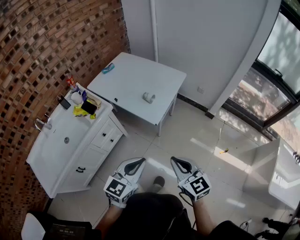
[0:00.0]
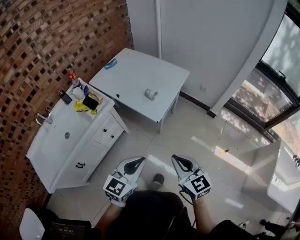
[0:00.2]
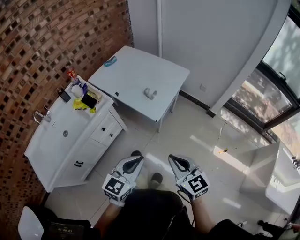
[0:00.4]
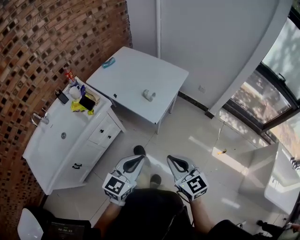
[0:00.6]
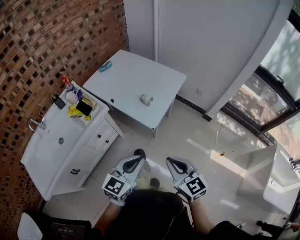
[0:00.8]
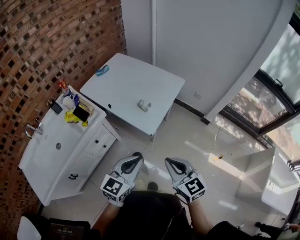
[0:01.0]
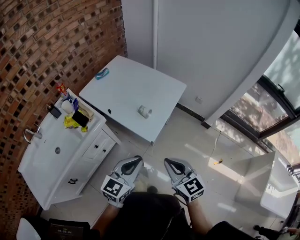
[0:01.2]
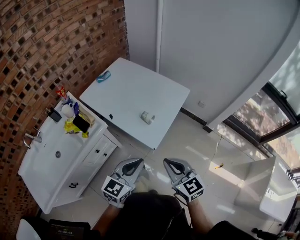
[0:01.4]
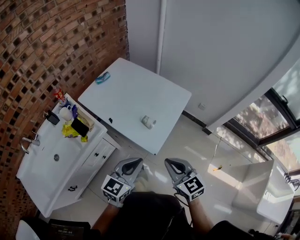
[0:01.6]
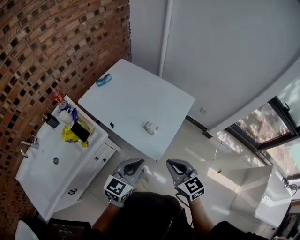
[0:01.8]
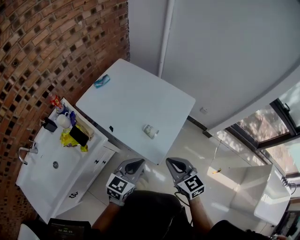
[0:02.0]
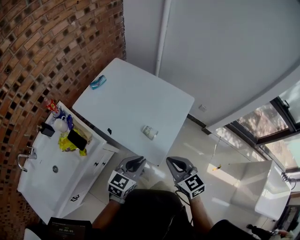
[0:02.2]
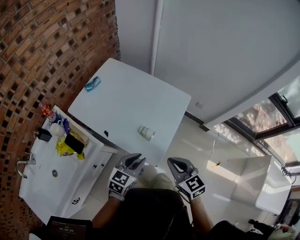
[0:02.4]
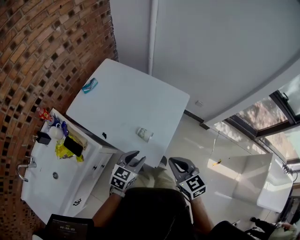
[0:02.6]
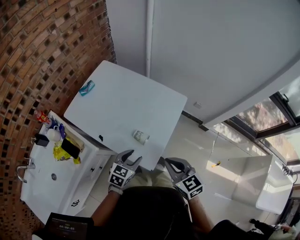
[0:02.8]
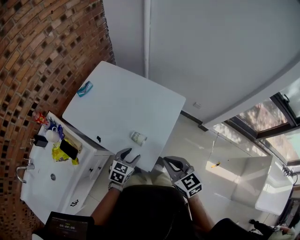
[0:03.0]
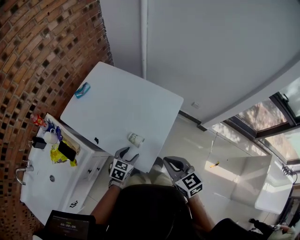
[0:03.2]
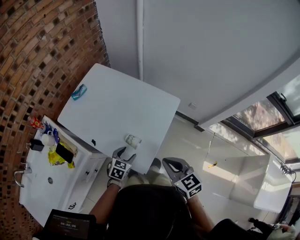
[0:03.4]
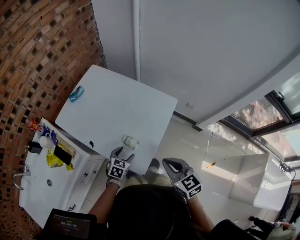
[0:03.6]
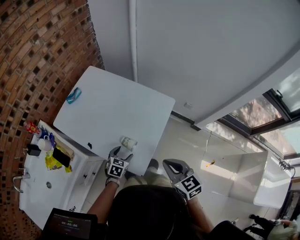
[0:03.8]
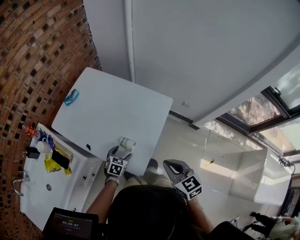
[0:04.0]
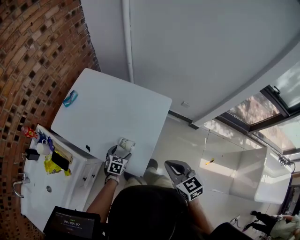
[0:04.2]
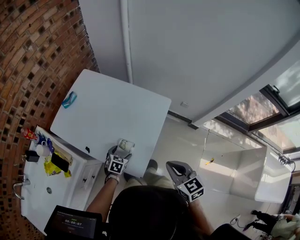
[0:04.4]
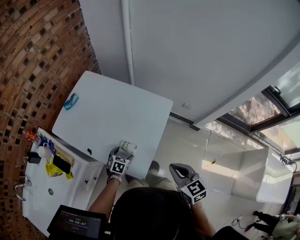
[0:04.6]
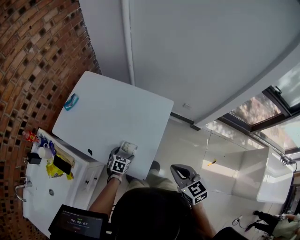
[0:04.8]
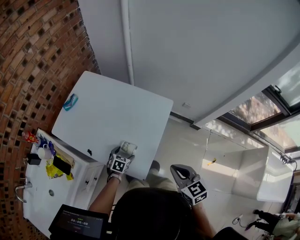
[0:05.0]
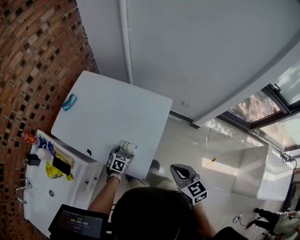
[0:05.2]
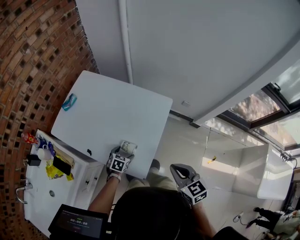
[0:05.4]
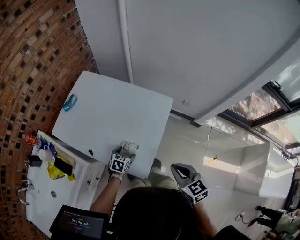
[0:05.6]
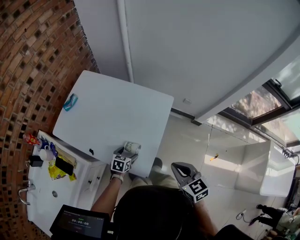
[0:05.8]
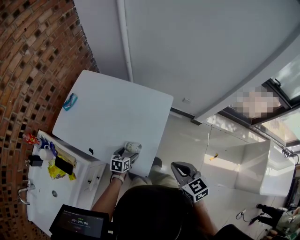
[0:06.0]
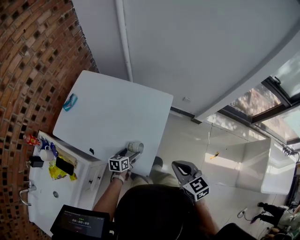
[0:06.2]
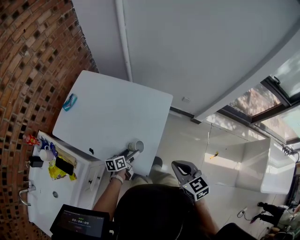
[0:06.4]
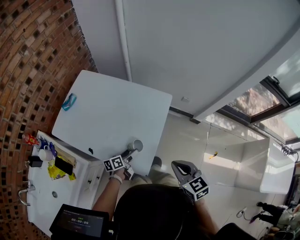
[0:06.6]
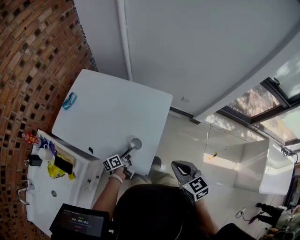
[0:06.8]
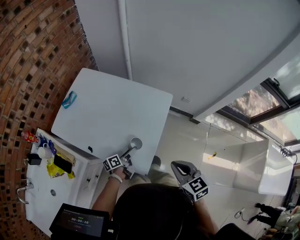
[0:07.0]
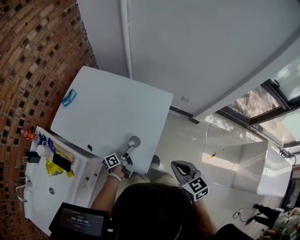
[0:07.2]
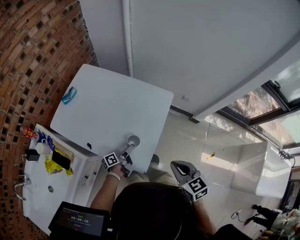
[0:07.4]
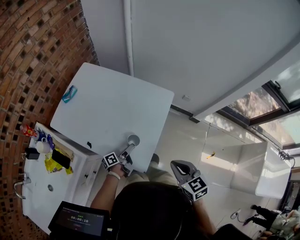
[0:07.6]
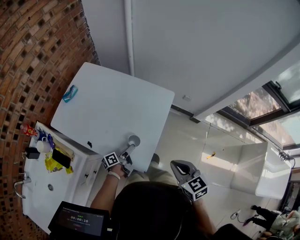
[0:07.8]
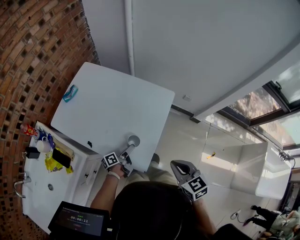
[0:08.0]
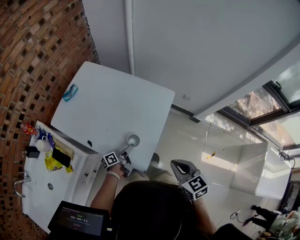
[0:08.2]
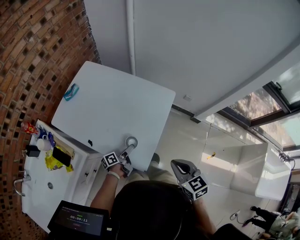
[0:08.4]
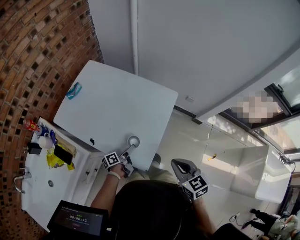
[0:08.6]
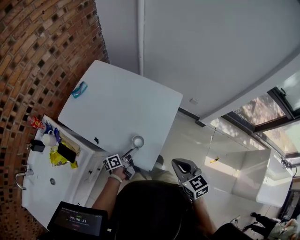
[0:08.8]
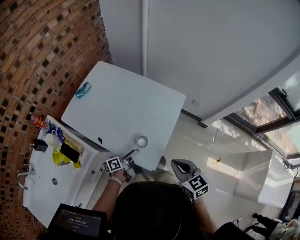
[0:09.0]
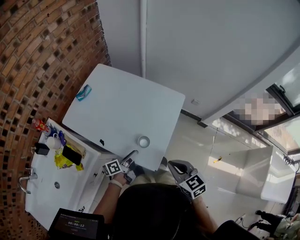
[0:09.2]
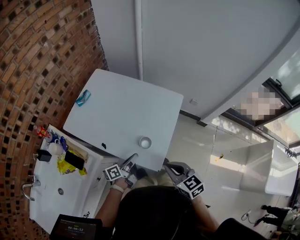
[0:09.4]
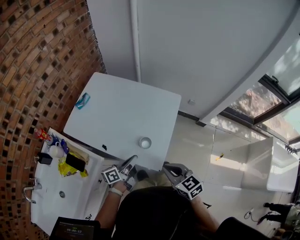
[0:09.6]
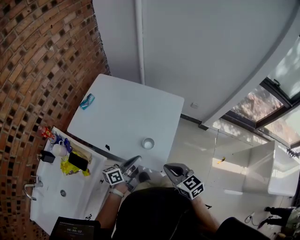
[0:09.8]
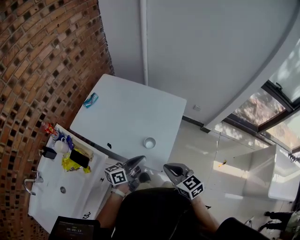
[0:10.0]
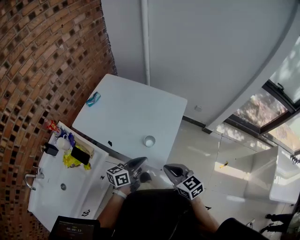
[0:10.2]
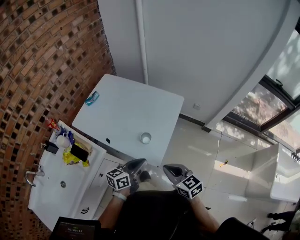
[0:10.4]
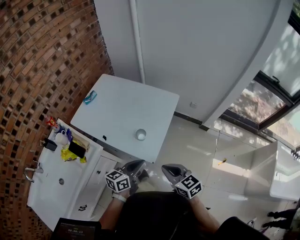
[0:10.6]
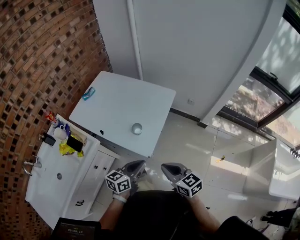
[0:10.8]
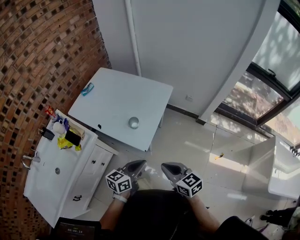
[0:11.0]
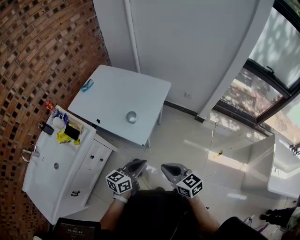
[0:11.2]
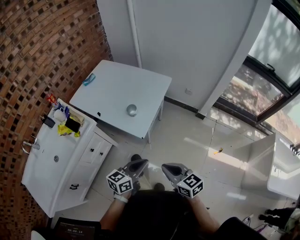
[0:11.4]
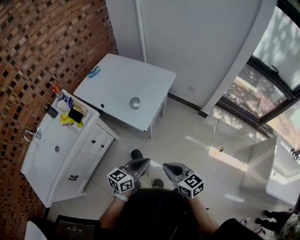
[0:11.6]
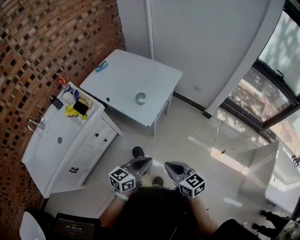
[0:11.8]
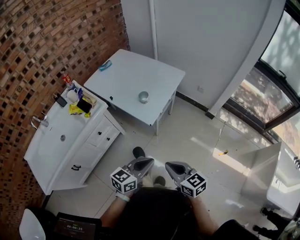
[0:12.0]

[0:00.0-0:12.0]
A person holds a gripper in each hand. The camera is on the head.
0:00.0 to 0:01.6: Both grippers travel together forward, about 25 cm.
0:01.6 to 0:03.0: The left gripper is displaced forward and downward by roughly 25 cm, turns by some 30 degrees, and opens up. Meanwhile the right gripper shifts roughly 15 cm forward.
0:03.0 to 0:04.4: The right gripper heads to the right, covering roughly 5 cm, while the left gripper travels downward and forward by approximately 15 cm, and opens.
0:04.4 to 0:06.0: There are only small adjustments of the grippers.
0:06.0 to 0:07.6: The left gripper rolls counterclockwise, seen from behind, by roughly 60 degrees.
0:07.6 to 0:09.0: The left gripper goes roughly 5 cm upward, while the right gripper shifts by roughly 5 cm.
0:09.0 to 0:10.4: The right gripper moves backward, approximately 10 cm. Meanwhile the left gripper shifts approximately 20 cm upward and backward, twists about 40 degrees clockwise, seen from behind, and closes up.
0:10.4 to 0:12.0: The right gripper goes approximately 25 cm backward, while the left gripper is displaced backward and to the right by some 30 cm.

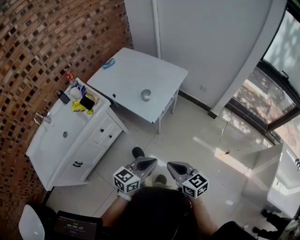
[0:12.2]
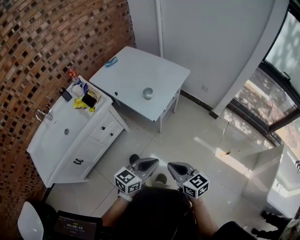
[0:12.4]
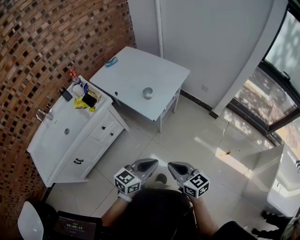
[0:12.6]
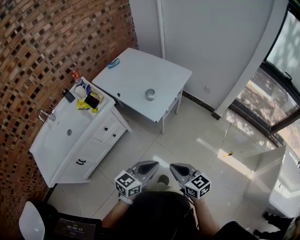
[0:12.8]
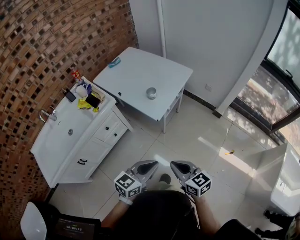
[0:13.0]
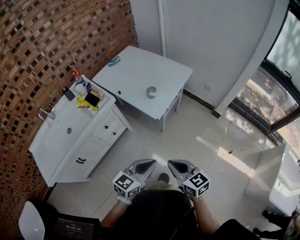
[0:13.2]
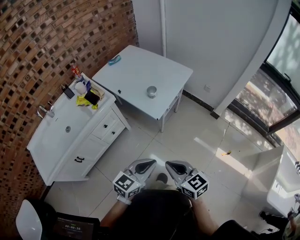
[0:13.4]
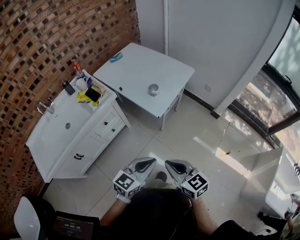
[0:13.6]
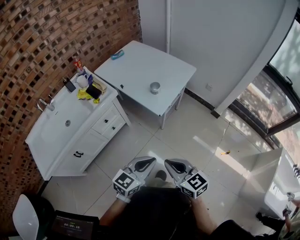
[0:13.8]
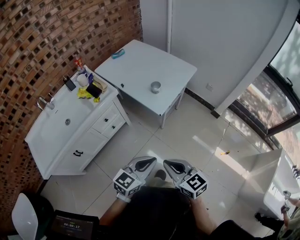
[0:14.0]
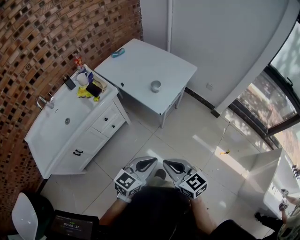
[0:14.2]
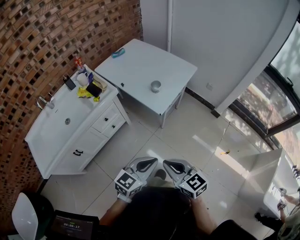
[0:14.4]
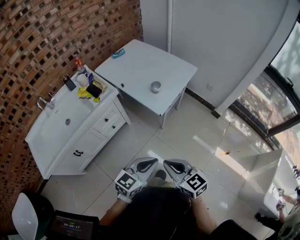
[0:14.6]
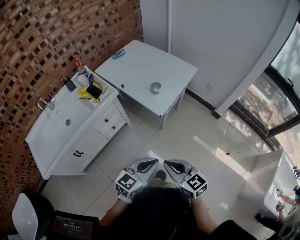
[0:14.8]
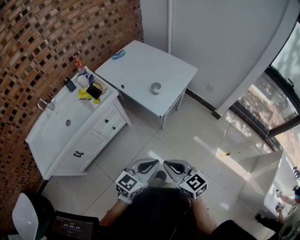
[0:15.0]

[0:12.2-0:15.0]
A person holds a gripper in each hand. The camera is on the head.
0:12.2 to 0:13.6: The left gripper changes place by some 5 cm. Meanwhile the right gripper ends up about 5 cm from where it was.
0:13.6 to 0:15.0: There are only small adjustments of the grippers.

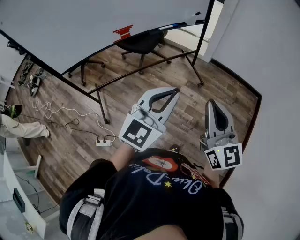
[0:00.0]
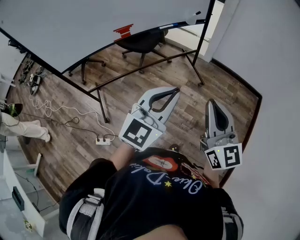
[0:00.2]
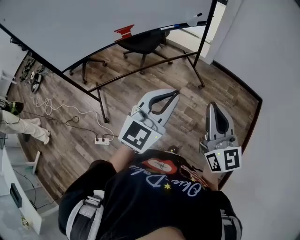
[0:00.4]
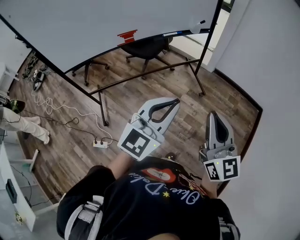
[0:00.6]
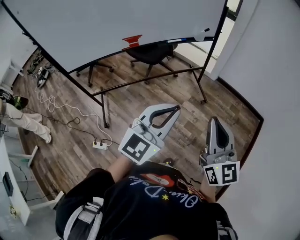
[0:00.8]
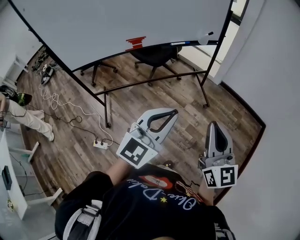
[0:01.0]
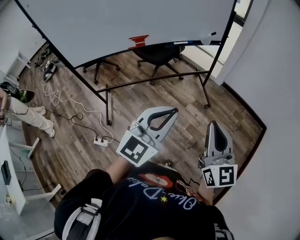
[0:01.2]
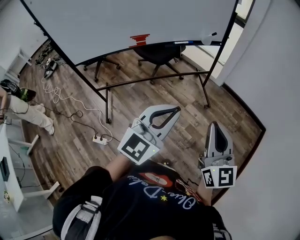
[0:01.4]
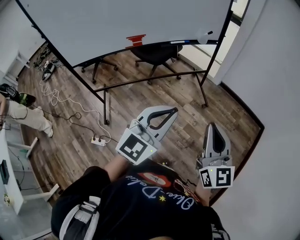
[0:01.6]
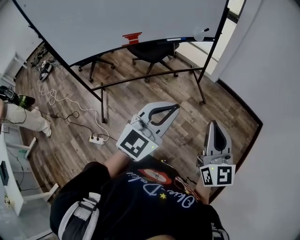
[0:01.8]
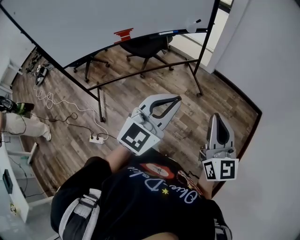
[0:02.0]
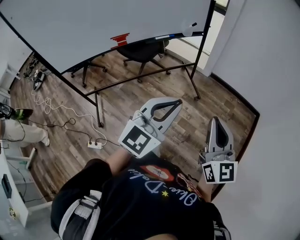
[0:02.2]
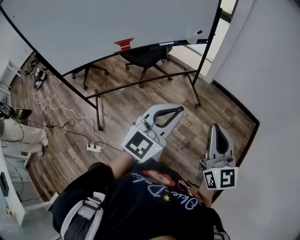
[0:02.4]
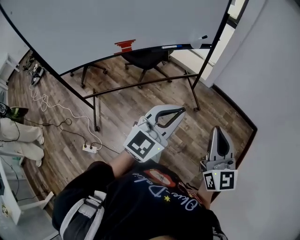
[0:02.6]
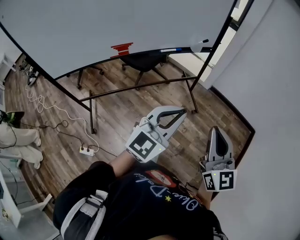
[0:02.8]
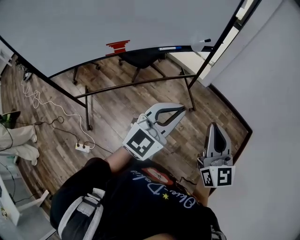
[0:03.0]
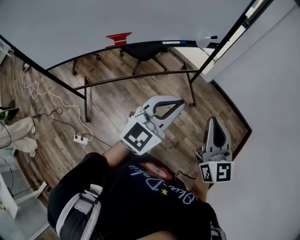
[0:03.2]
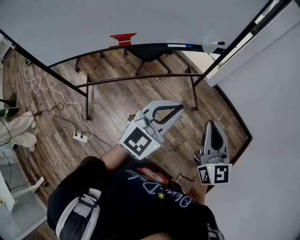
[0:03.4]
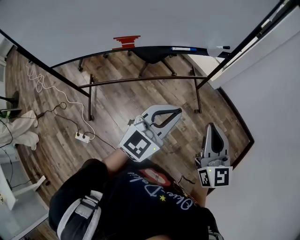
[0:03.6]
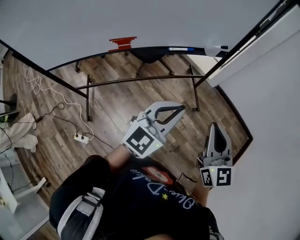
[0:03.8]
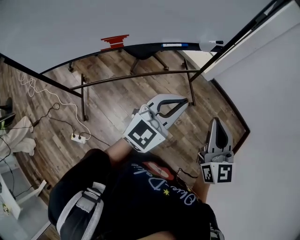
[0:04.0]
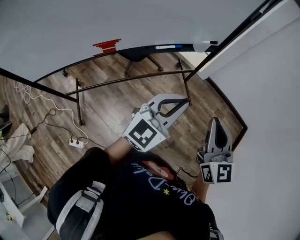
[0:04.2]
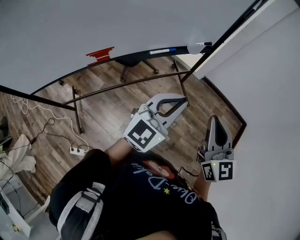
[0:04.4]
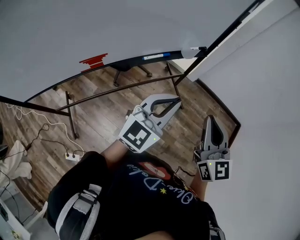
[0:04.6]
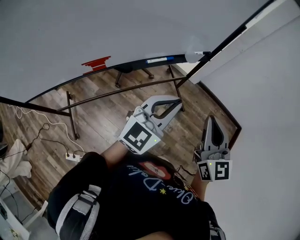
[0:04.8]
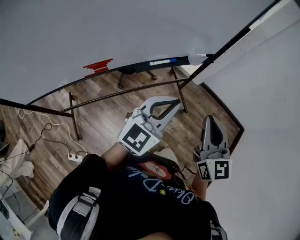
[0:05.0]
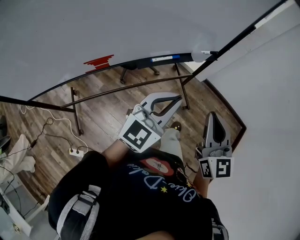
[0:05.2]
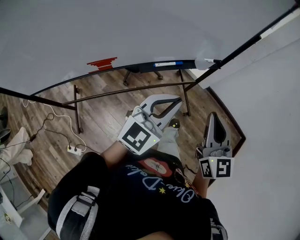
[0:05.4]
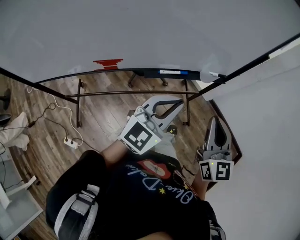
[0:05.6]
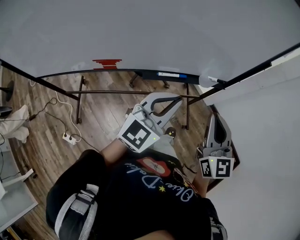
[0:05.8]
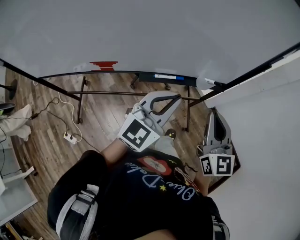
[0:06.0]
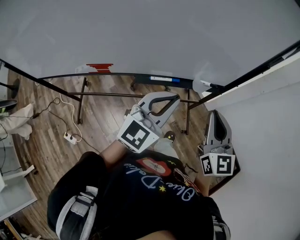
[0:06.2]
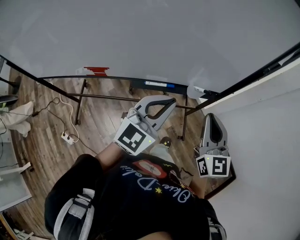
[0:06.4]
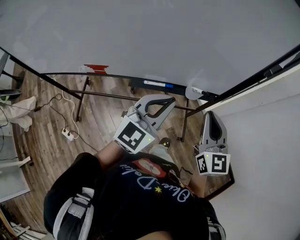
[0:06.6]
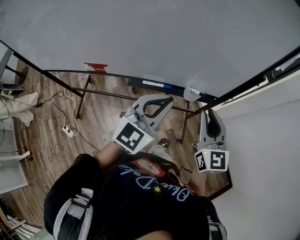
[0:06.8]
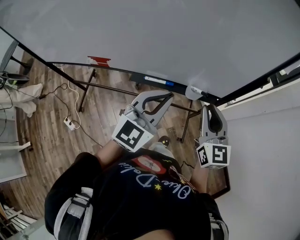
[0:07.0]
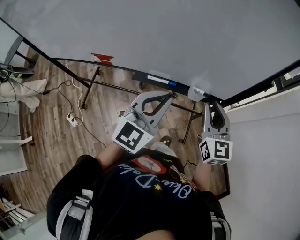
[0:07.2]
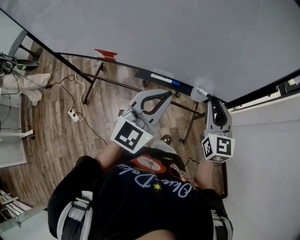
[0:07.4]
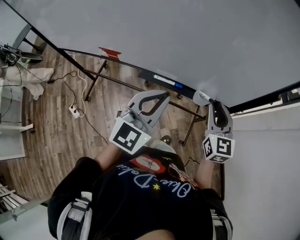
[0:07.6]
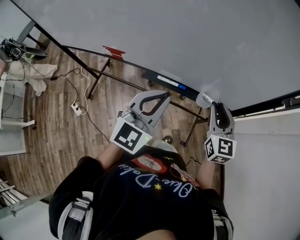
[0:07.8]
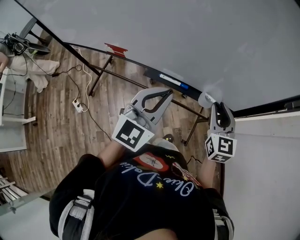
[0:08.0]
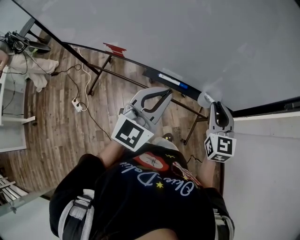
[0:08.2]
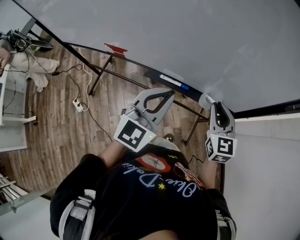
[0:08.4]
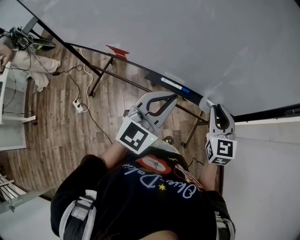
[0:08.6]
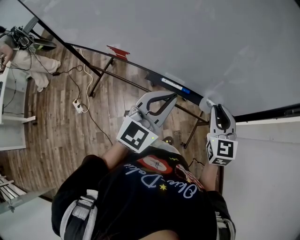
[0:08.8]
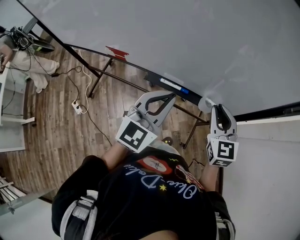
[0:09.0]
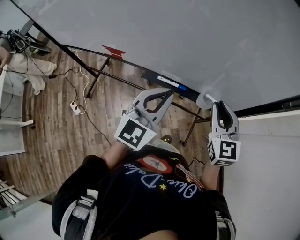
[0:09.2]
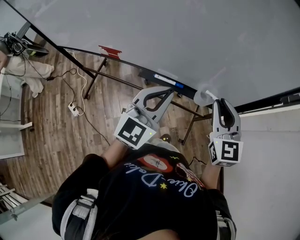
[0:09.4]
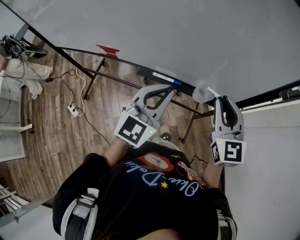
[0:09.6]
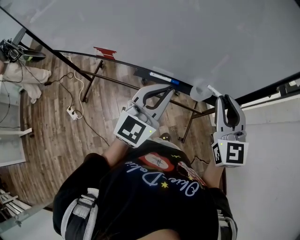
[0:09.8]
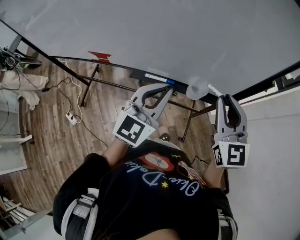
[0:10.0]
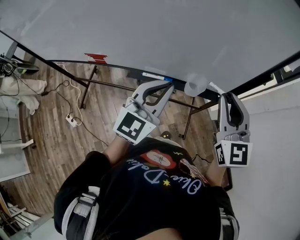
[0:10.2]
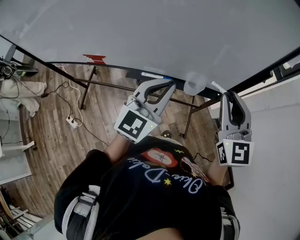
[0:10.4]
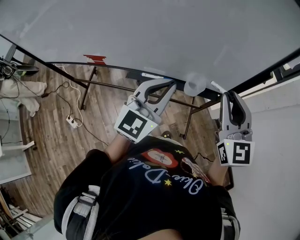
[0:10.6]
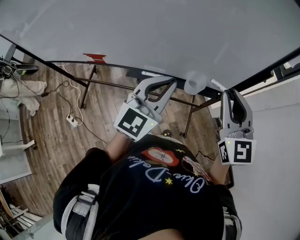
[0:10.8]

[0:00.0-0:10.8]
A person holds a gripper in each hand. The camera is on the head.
0:00.0 to 0:01.6: Both grippers travel together to the right, approximately 5 cm.
0:01.6 to 0:03.0: The two grippers go about 20 cm forward.
0:03.0 to 0:04.6: Both grippers move forward, roughly 15 cm.
0:04.6 to 0:06.2: The two grippers go roughly 20 cm forward. The left gripper turns by about 20 degrees.
0:06.2 to 0:07.8: The right gripper travels forward and downward by about 15 cm, and opens its fingers. Meanwhile the left gripper turns by some 30 degrees.
0:07.8 to 0:09.2: There are only small adjustments of the grippers.
0:09.2 to 0:10.8: The right gripper goes some 10 cm upward and to the right; the left gripper is displaced to the right by approximately 5 cm.
